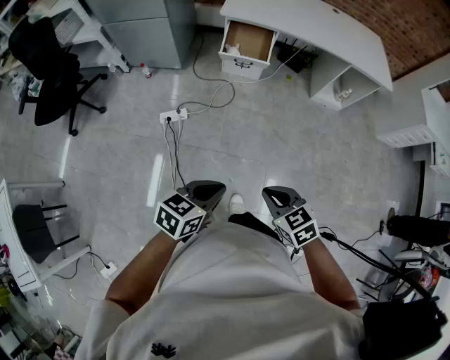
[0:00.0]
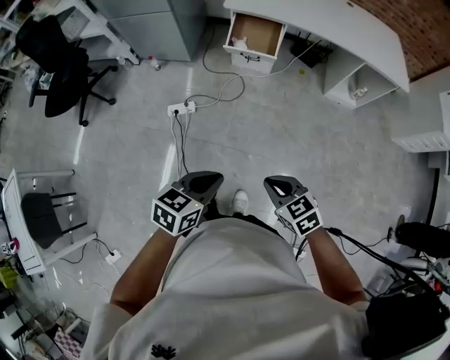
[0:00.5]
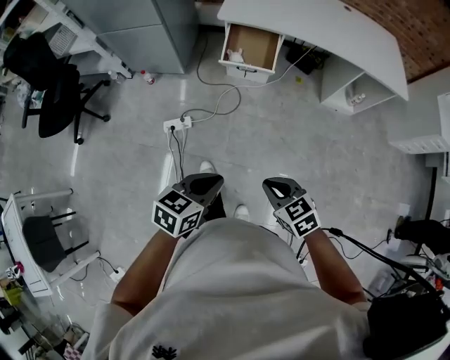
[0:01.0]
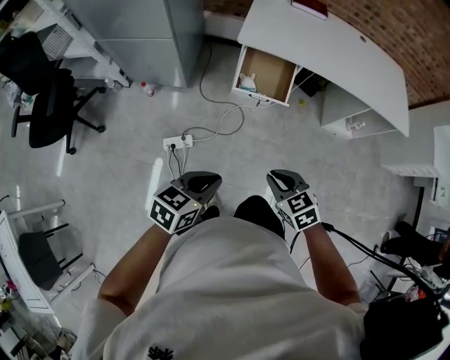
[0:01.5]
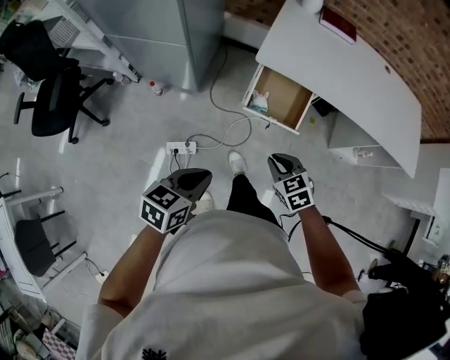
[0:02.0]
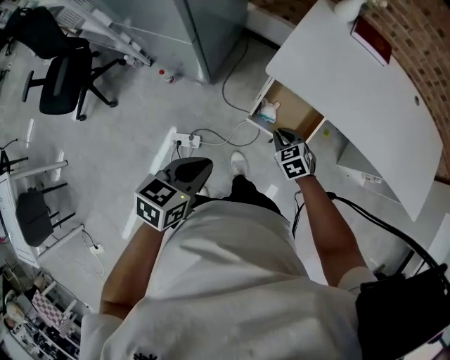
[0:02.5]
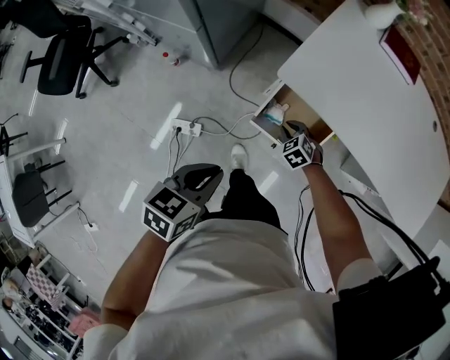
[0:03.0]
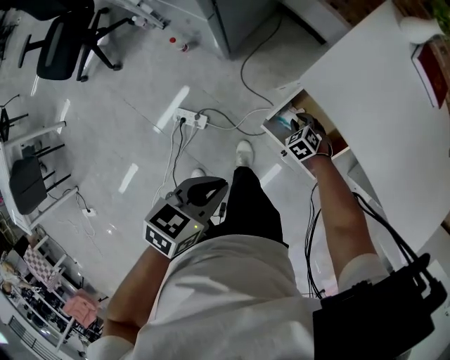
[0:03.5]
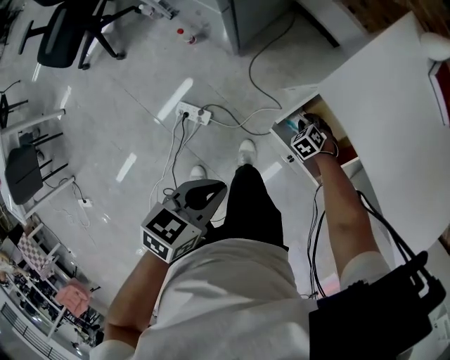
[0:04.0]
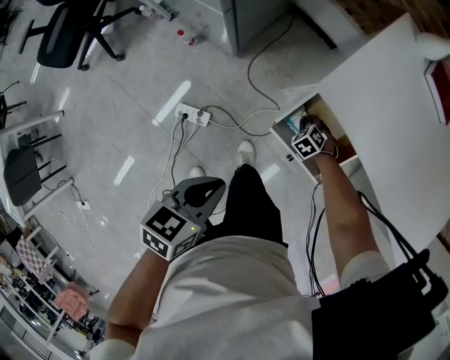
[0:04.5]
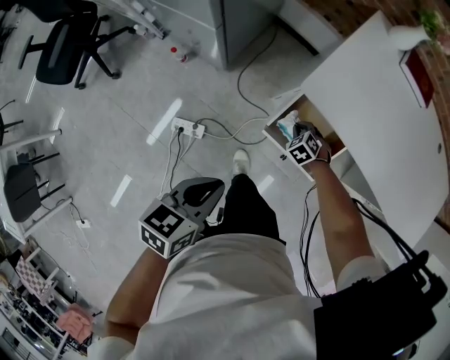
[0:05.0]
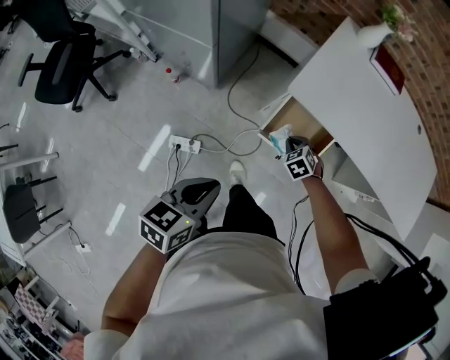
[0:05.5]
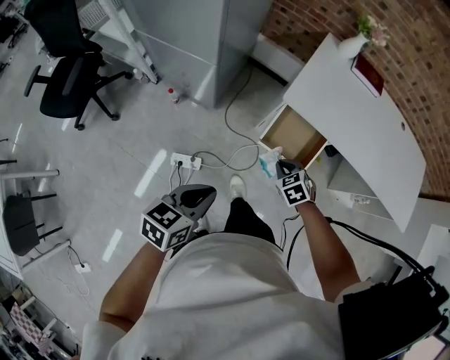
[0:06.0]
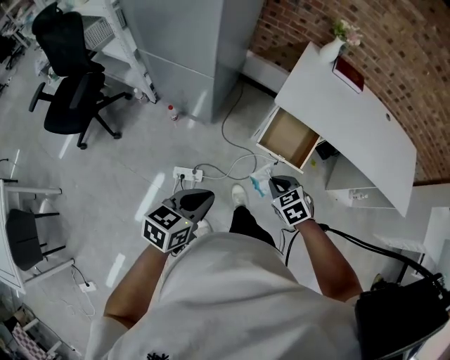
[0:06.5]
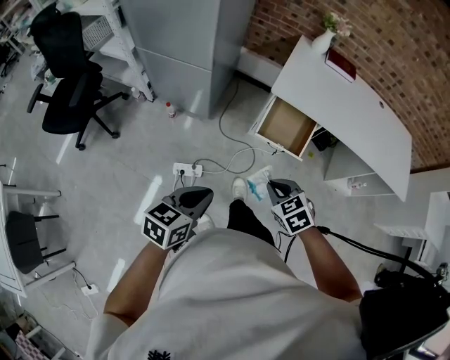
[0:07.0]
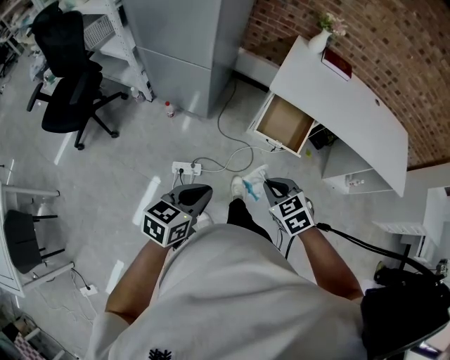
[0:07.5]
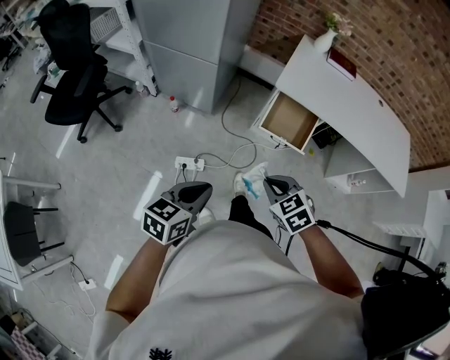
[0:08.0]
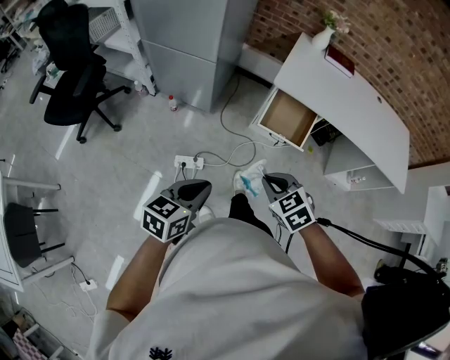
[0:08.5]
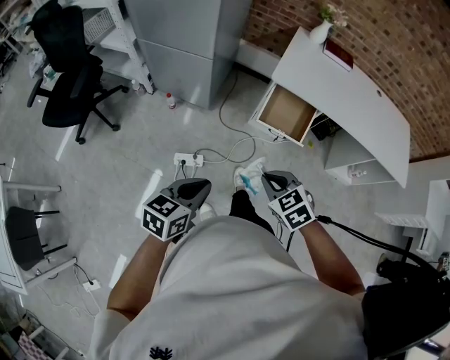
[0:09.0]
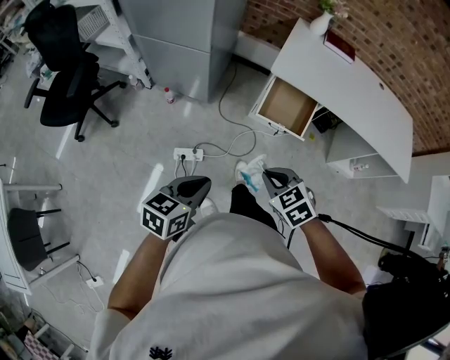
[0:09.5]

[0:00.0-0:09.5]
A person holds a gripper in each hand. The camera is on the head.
0:00.0 to 0:02.0: The pair of grippers is taken forward, some 60 cm.
0:02.0 to 0:04.0: The left gripper ends up about 30 cm from where it was, and changes its angle by roughly 30 degrees; the right gripper moves downward, roughly 40 cm, and turns by approximately 50 degrees.
0:04.0 to 0:05.5: The right gripper moves upward, approximately 25 cm, and turns by approximately 20 degrees. The left gripper shifts about 15 cm upward.
0:05.5 to 0:07.5: The left gripper shifts approximately 30 cm backward. The right gripper shifts about 50 cm backward and upward.
0:07.5 to 0:09.5: The grippers make only small movements.

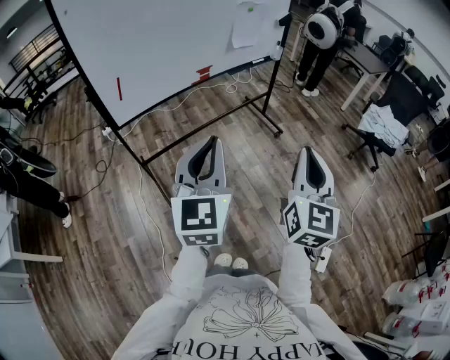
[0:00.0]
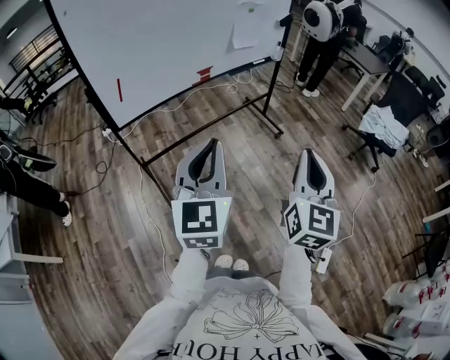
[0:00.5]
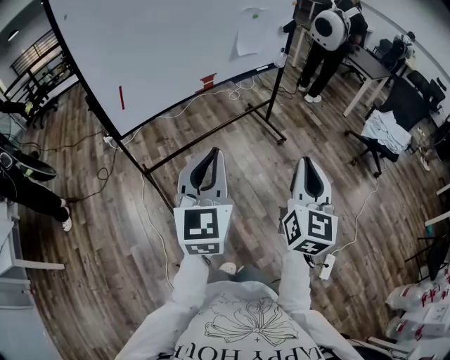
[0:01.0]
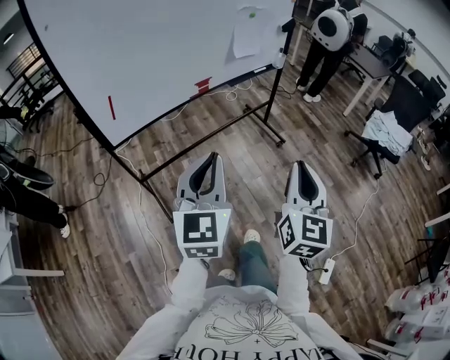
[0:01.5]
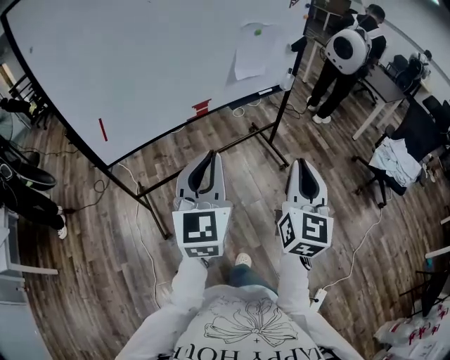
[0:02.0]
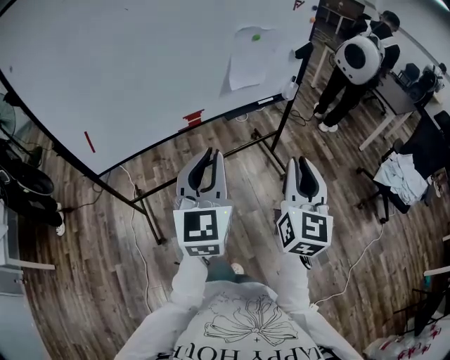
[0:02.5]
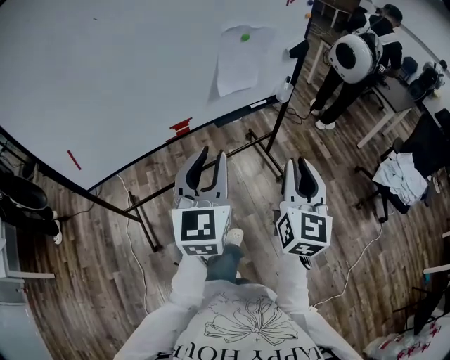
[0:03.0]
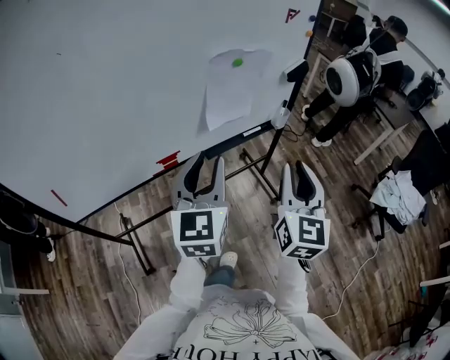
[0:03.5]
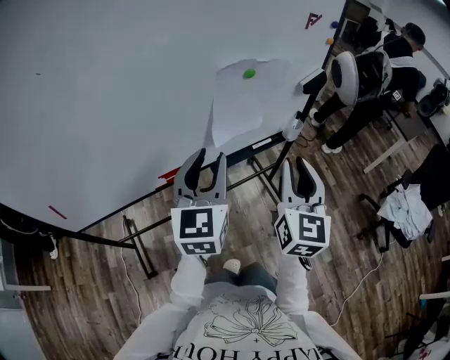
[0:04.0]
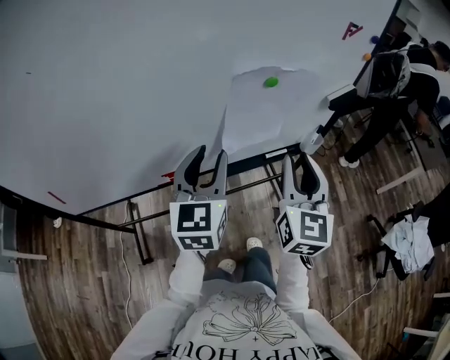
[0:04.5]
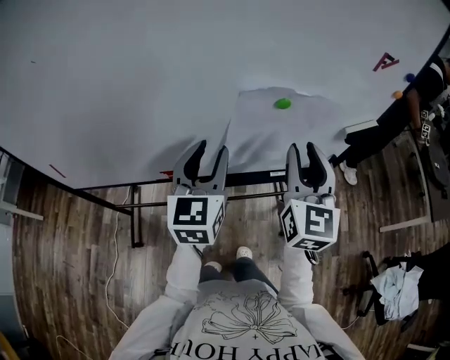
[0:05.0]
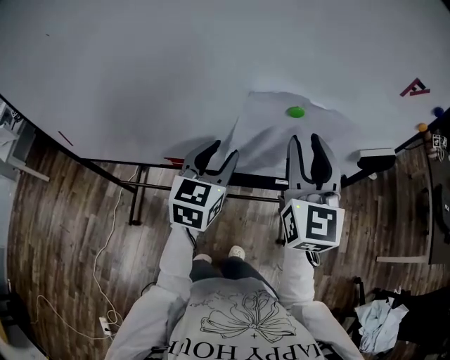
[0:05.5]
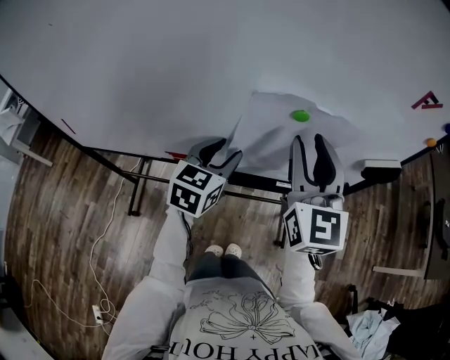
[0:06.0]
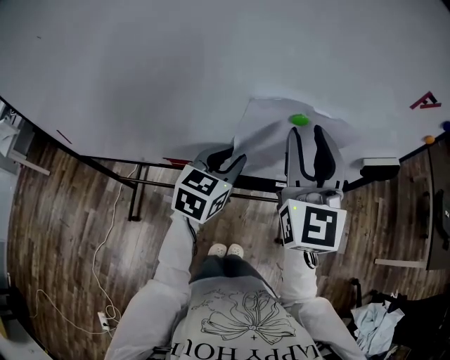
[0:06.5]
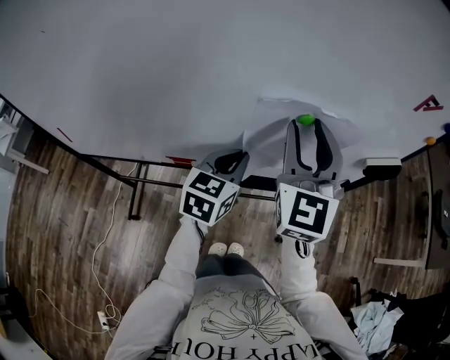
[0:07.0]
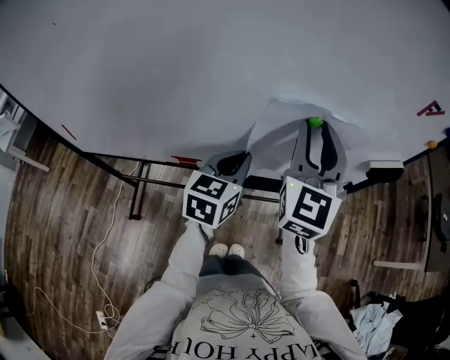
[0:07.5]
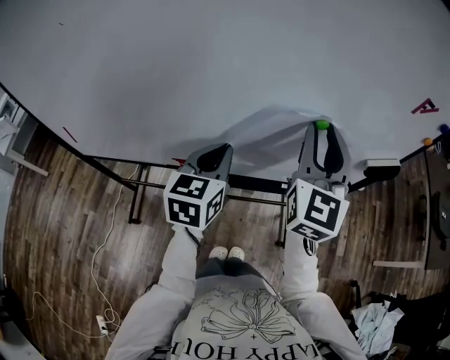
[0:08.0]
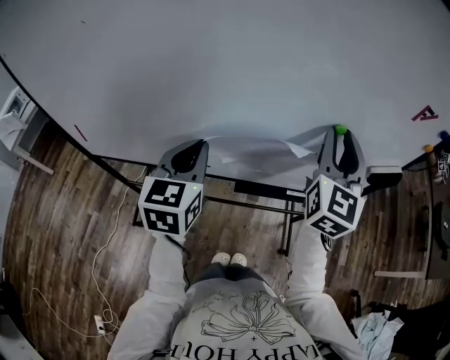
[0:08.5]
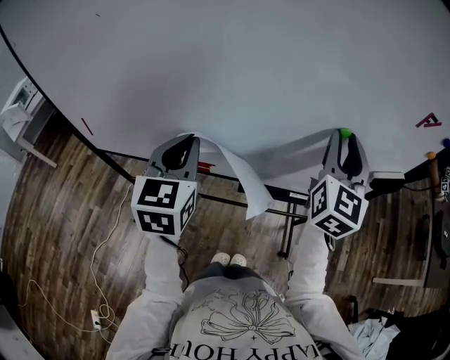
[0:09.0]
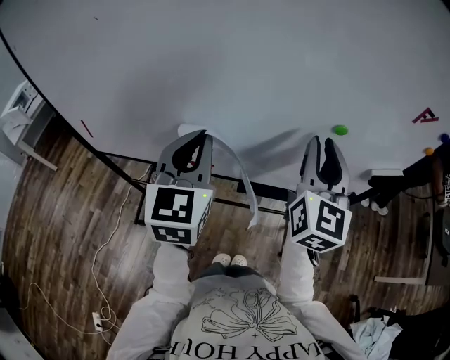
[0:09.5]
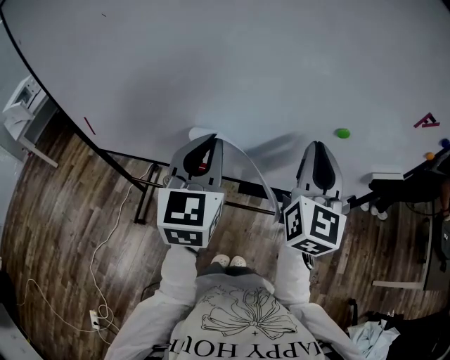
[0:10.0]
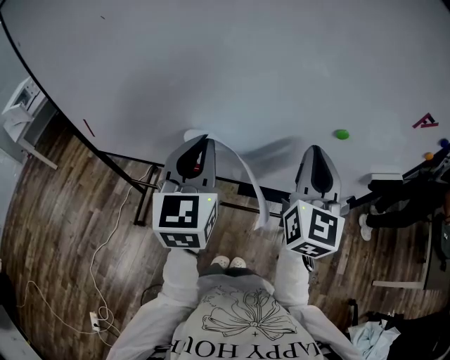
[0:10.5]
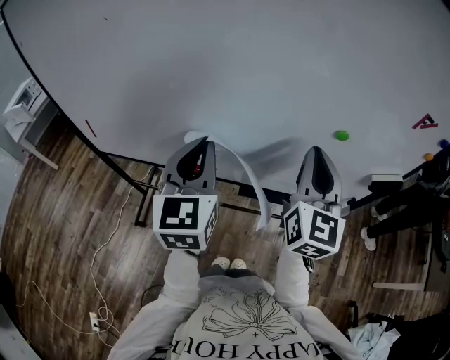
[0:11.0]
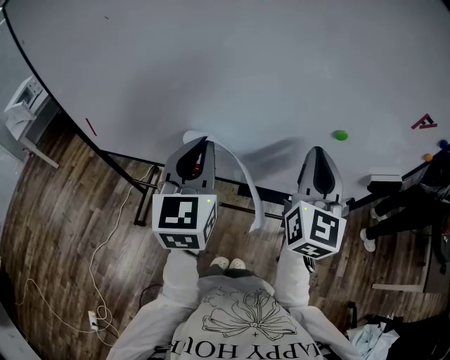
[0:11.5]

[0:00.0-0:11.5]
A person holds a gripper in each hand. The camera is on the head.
0:00.0 to 0:02.0: The two grippers go some 25 cm forward.
0:02.0 to 0:04.0: Both grippers are carried forward, about 40 cm. The left gripper opens up.
0:04.0 to 0:06.0: The left gripper changes place by about 20 cm, and turns by about 20 degrees; the right gripper moves some 25 cm, and changes its angle by roughly 40 degrees.
0:06.0 to 0:07.5: The left gripper closes up.
0:07.5 to 0:09.5: The left gripper goes some 20 cm upward, to the left and backward, and turns by approximately 30 degrees.
0:09.5 to 0:11.5: The right gripper closes its fingers.

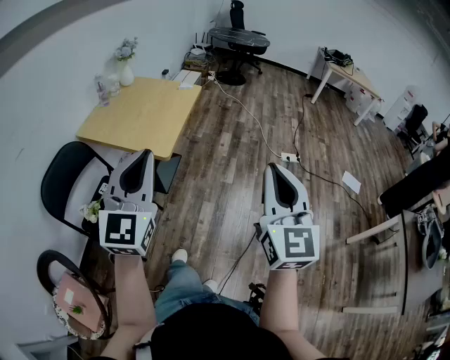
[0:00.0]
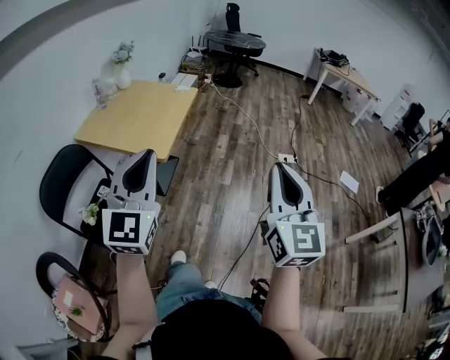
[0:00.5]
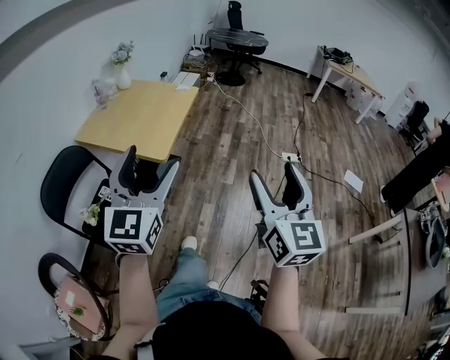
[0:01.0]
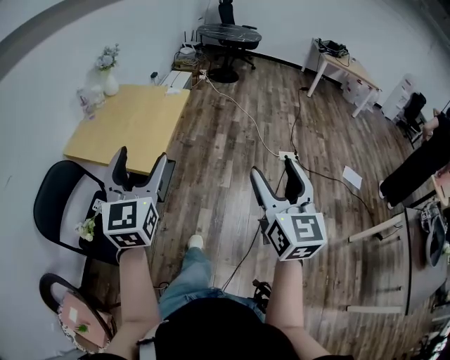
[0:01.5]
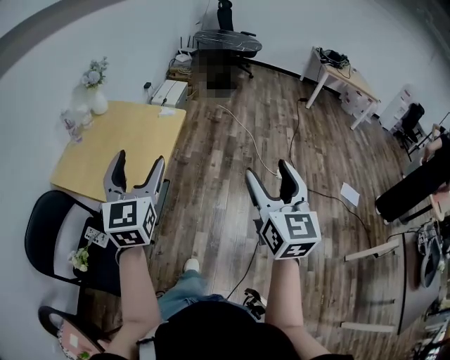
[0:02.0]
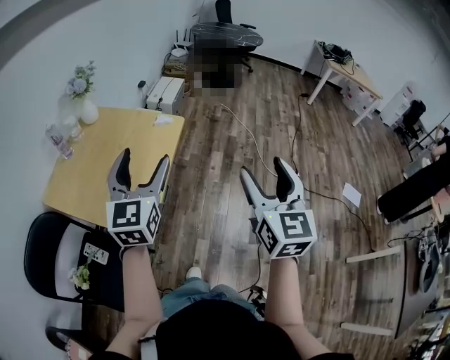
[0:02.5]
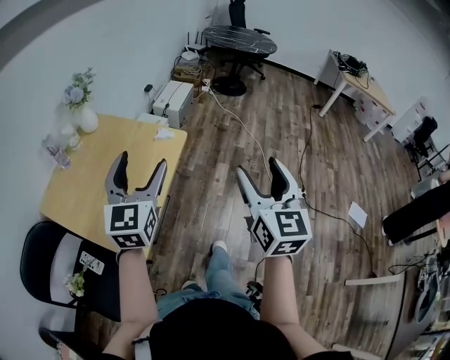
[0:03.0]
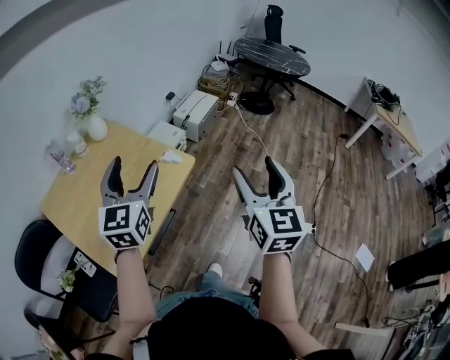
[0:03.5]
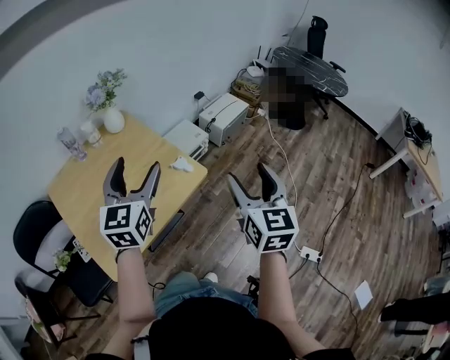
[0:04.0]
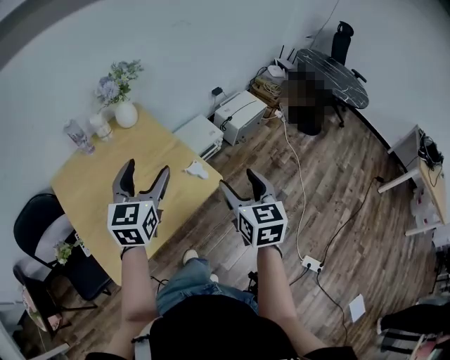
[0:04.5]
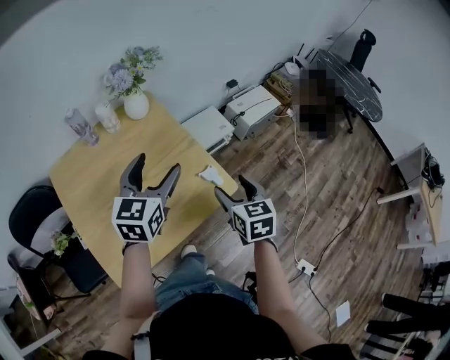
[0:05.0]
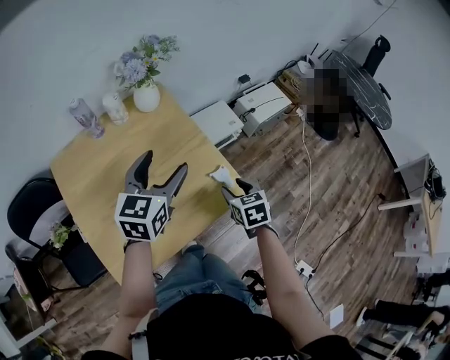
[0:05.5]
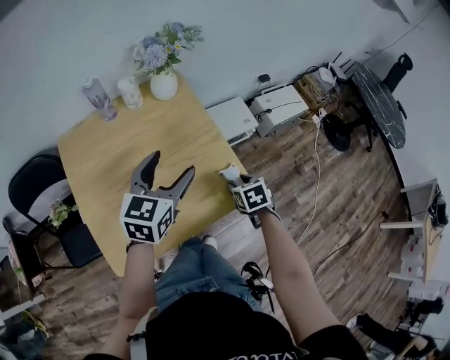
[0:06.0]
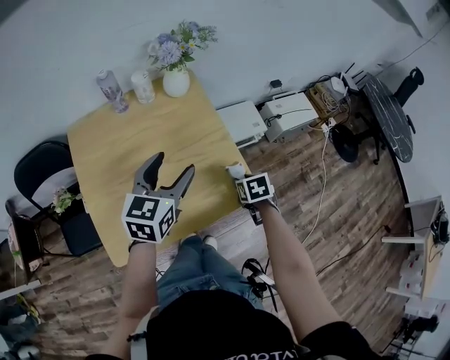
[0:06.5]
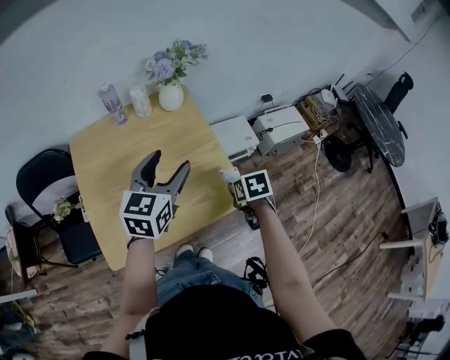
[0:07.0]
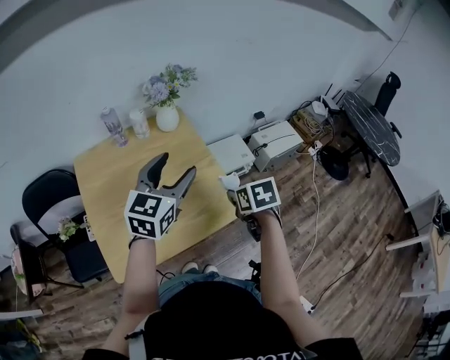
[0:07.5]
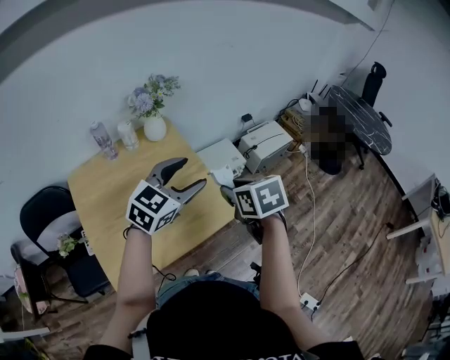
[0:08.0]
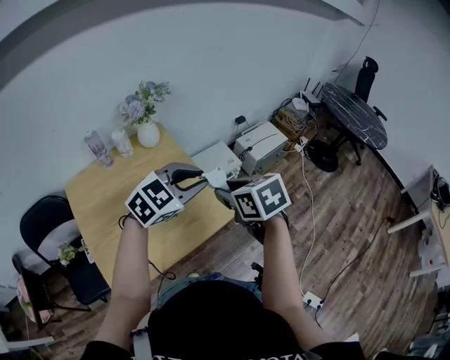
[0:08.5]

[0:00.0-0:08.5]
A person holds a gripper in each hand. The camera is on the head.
0:00.0 to 0:02.0: Both grippers travel together forward, roughly 30 cm. The left gripper opens its fingers, while the right gripper opens its fingers.
0:02.0 to 0:04.0: The left gripper moves roughly 40 cm, and swivels roughly 30 degrees, while the right gripper shifts by roughly 50 cm, and rotates some 30 degrees.
0:04.0 to 0:06.5: The right gripper shifts roughly 40 cm downward and forward, tips its fingers downward by some 60 degrees, and closes its fingers. The left gripper heads downward, forward and to the left, covering approximately 20 cm.
0:06.5 to 0:08.5: The right gripper shifts about 25 cm upward, and rotates some 20 degrees, while the left gripper heads to the right and upward, covering approximately 20 cm, rotates some 50 degrees, and closes up.
